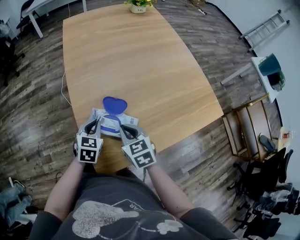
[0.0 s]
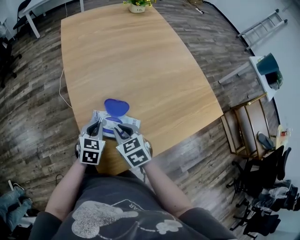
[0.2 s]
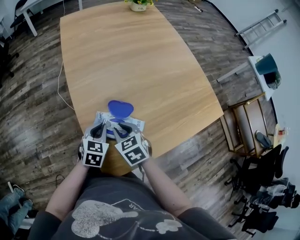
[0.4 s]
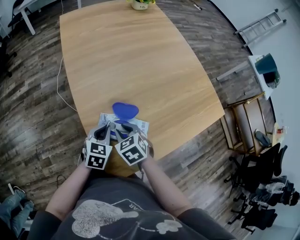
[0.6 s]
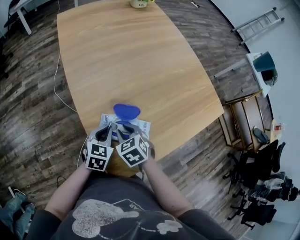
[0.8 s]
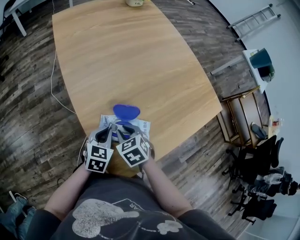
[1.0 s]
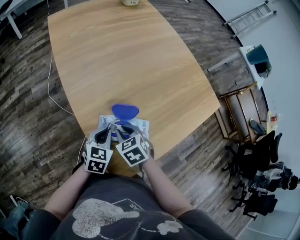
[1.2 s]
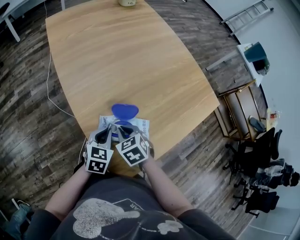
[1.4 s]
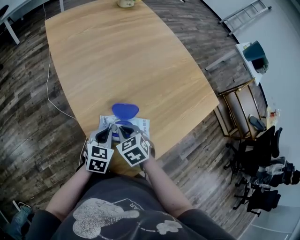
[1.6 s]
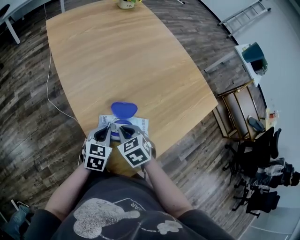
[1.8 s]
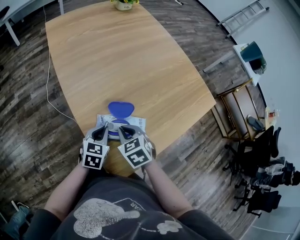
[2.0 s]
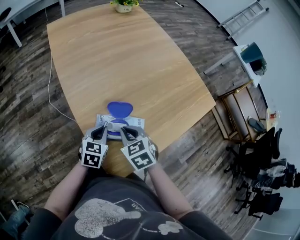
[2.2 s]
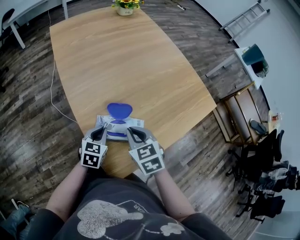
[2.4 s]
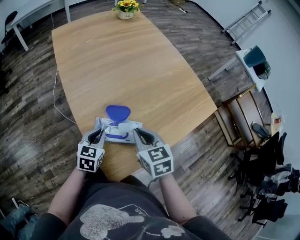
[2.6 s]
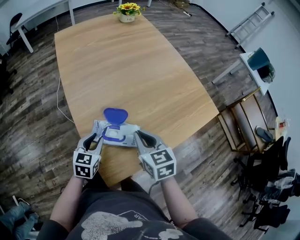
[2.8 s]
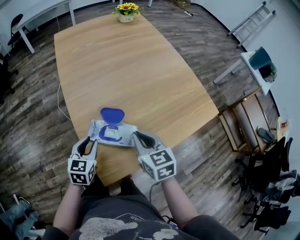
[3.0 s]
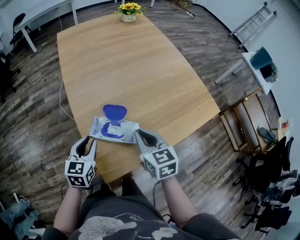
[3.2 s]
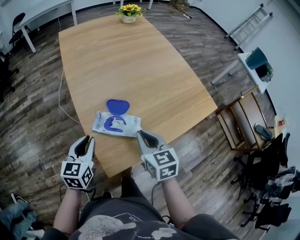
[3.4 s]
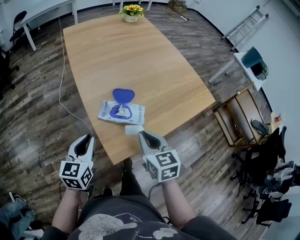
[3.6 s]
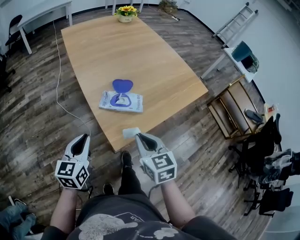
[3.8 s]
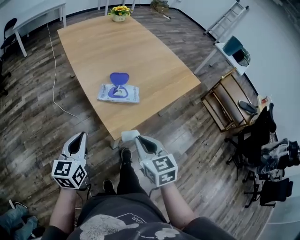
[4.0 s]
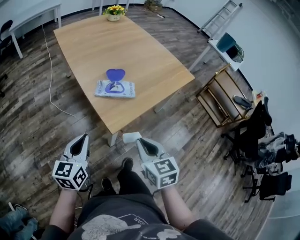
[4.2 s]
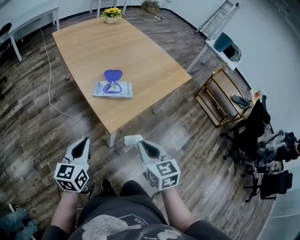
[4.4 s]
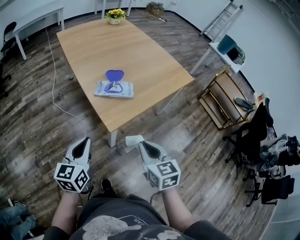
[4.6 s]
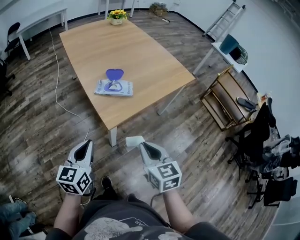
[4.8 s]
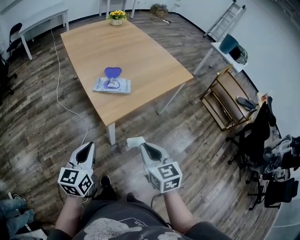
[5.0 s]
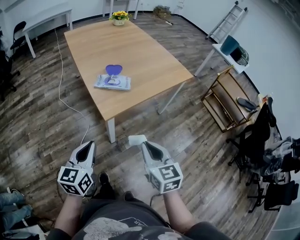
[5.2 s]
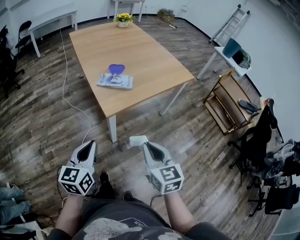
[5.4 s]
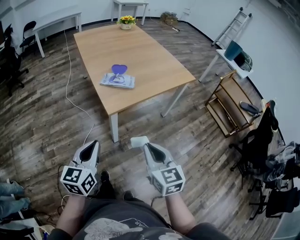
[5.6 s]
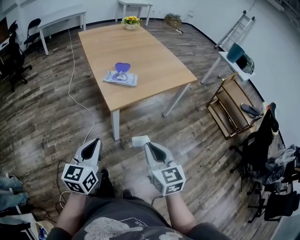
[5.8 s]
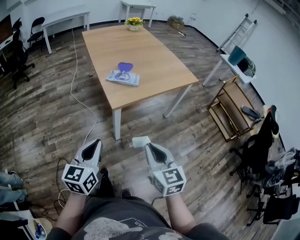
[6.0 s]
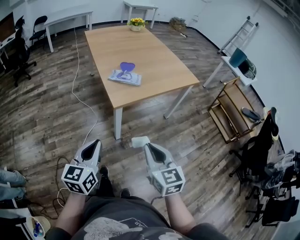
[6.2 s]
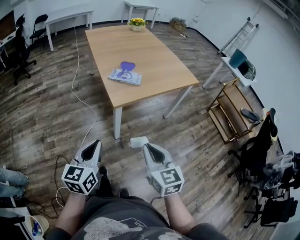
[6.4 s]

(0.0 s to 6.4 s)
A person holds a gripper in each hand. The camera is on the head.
0.0 s - 1.6 s: The right gripper goes some 5 cm to the left, and swivels some 20 degrees.
1.6 s - 3.2 s: The left gripper shifts some 5 cm upward, rotates approximately 20 degrees, and opens its fingers; the right gripper heads upward and to the right, covering about 15 cm, and swivels some 30 degrees.
3.2 s - 4.8 s: The two grippers go roughly 30 cm backward. The left gripper closes up.
4.8 s - 6.4 s: Both grippers move backward, some 15 cm.

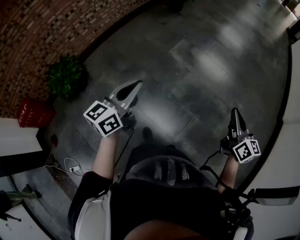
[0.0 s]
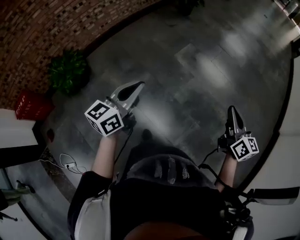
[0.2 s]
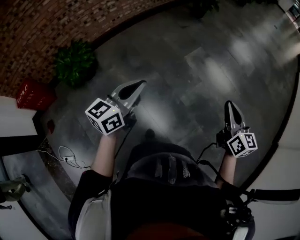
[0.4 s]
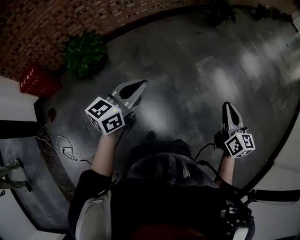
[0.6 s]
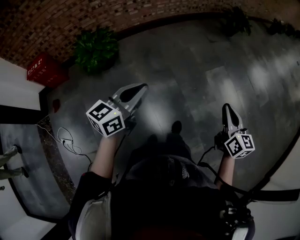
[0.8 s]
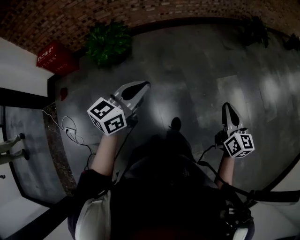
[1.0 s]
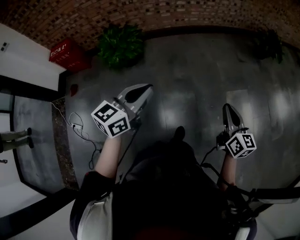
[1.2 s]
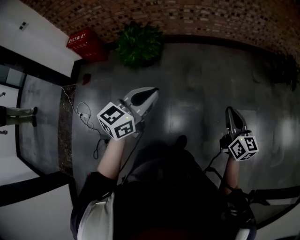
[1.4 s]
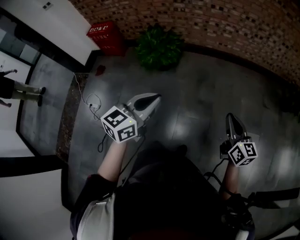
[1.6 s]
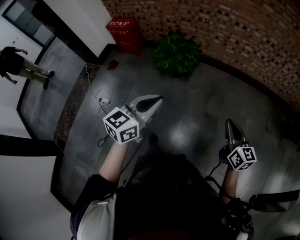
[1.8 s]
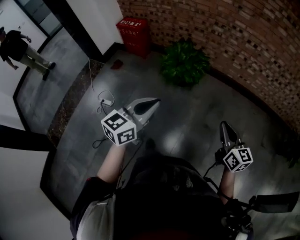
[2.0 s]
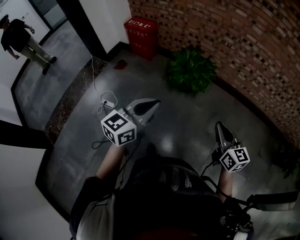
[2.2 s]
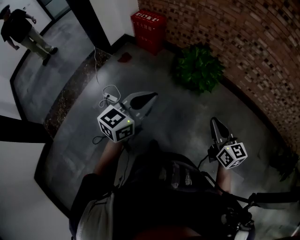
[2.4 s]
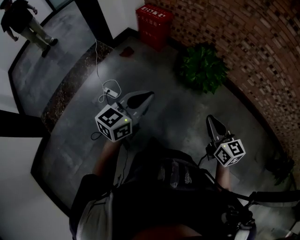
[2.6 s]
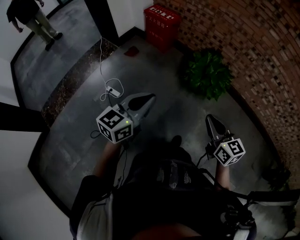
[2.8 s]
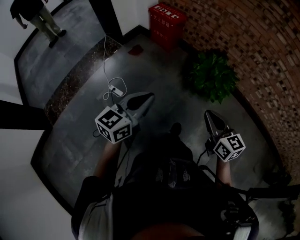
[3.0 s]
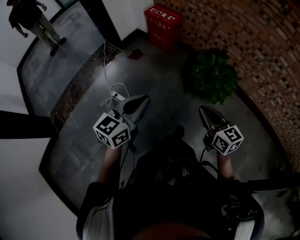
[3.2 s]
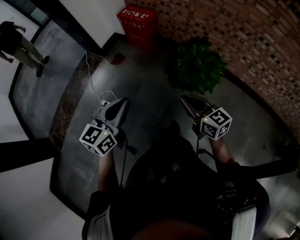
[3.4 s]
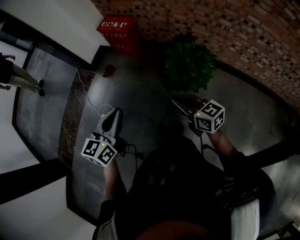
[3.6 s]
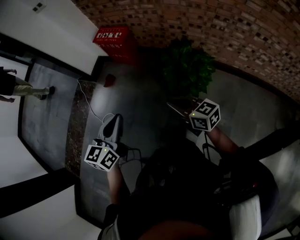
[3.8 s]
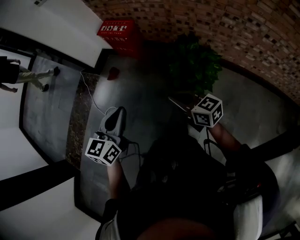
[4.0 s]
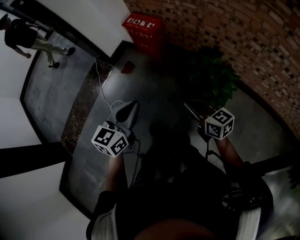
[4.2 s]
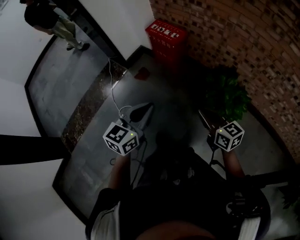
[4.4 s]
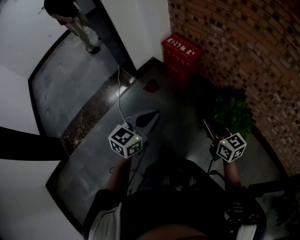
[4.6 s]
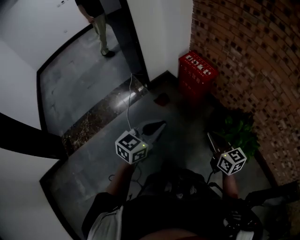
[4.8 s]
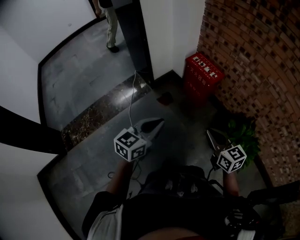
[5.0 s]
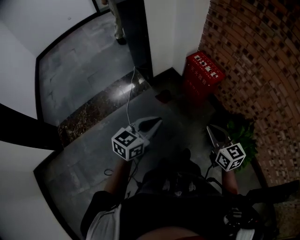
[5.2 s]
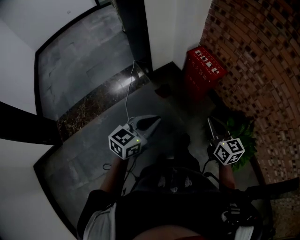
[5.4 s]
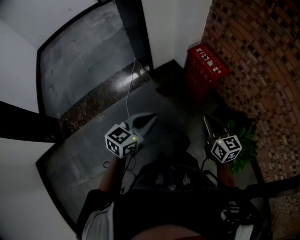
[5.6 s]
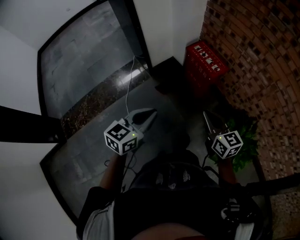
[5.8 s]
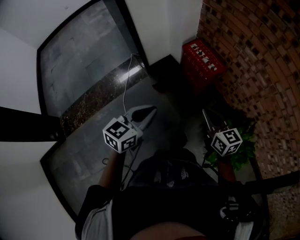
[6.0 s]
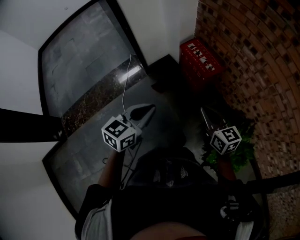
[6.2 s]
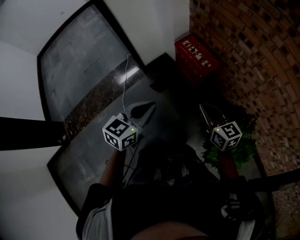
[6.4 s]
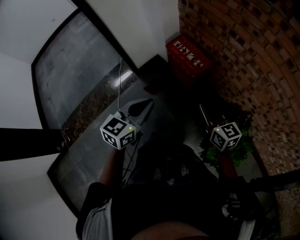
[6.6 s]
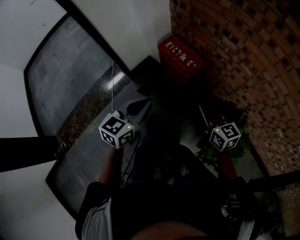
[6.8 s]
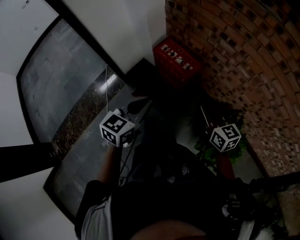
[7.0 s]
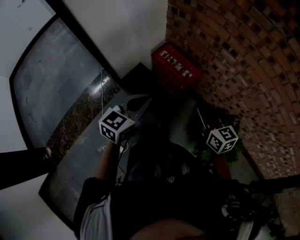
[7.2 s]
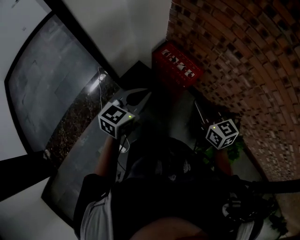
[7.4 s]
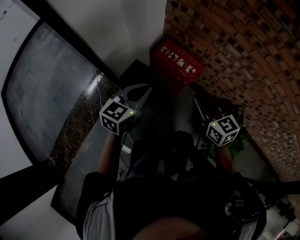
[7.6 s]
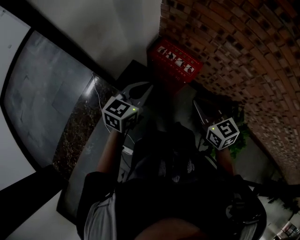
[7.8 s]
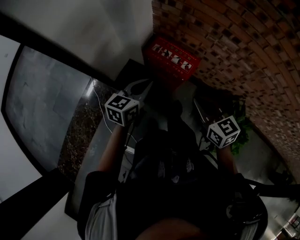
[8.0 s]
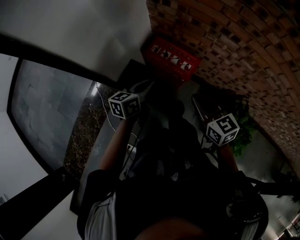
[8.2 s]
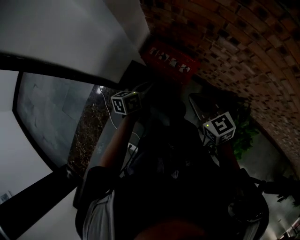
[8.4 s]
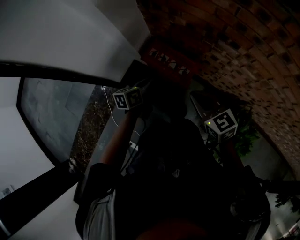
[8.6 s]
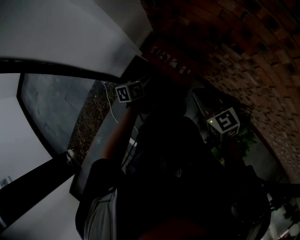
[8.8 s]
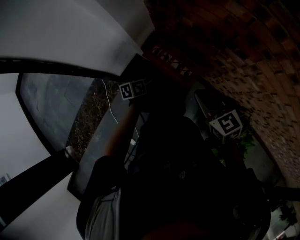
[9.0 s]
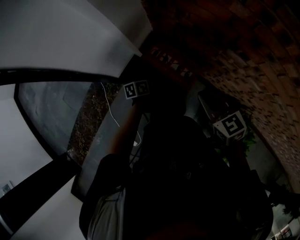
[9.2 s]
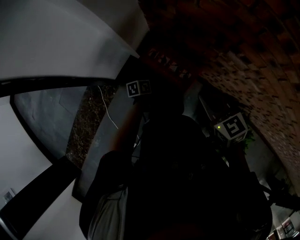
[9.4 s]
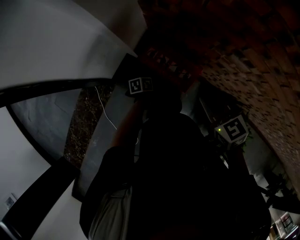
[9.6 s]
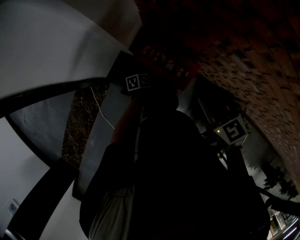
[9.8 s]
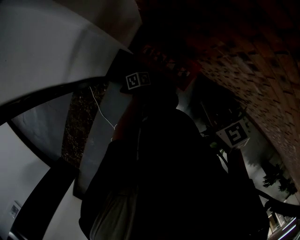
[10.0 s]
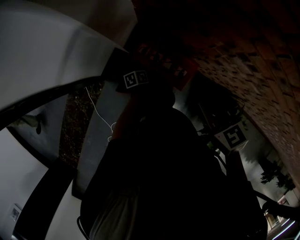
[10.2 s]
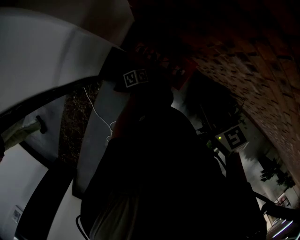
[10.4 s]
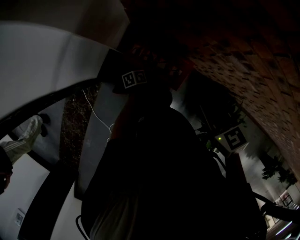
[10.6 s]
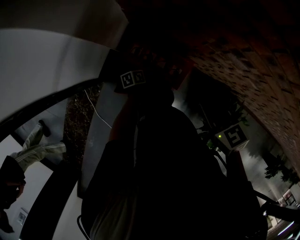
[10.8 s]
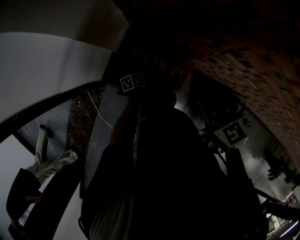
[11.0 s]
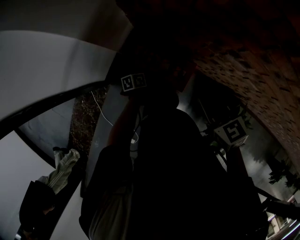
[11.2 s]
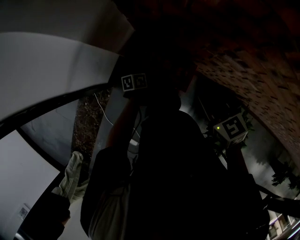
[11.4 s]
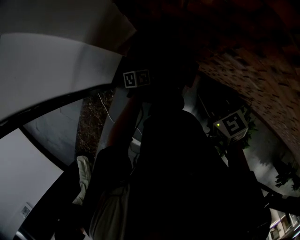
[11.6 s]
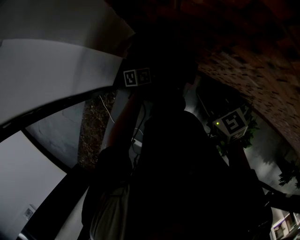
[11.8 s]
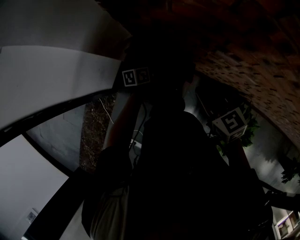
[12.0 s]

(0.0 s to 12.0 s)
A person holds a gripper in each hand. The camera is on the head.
0.0 s - 1.6 s: The left gripper moves approximately 35 cm, and rotates some 50 degrees, while the right gripper ends up roughly 60 cm from where it was, and turns by roughly 60 degrees.
1.6 s - 3.0 s: The pair of grippers is taken some 50 cm. The left gripper turns by some 30 degrees, while the right gripper swivels about 40 degrees.
3.0 s - 4.4 s: Both grippers travel together forward, approximately 25 cm.
4.4 s - 6.0 s: The right gripper moves forward, about 30 cm, while the left gripper heads forward and to the left, covering approximately 30 cm.
6.0 s - 7.6 s: The two grippers go approximately 25 cm forward.
7.6 s - 9.0 s: The right gripper heads forward and to the right, covering some 20 cm, while the left gripper goes roughly 35 cm downward, forward and to the right, rolls counterclockwise, seen from behind, by roughly 50 degrees, and opens its fingers.
9.0 s - 10.4 s: The right gripper travels forward by some 5 cm. Meanwhile the left gripper heads downward, covering some 20 cm, changes its angle by some 20 degrees, and opens up.
10.4 s - 12.0 s: The left gripper travels upward and forward by approximately 15 cm, and changes its angle by some 20 degrees. The right gripper changes place by some 5 cm.

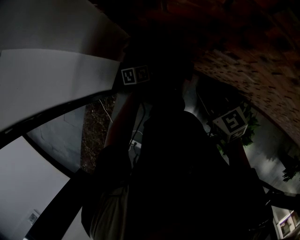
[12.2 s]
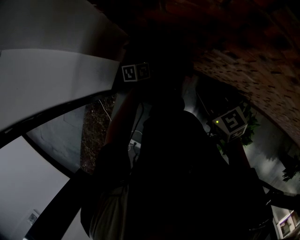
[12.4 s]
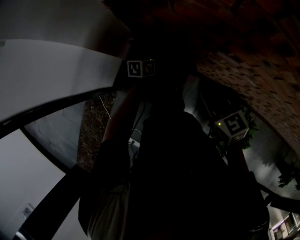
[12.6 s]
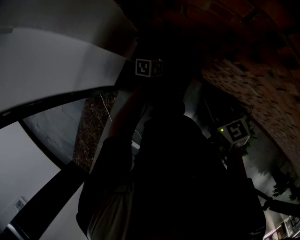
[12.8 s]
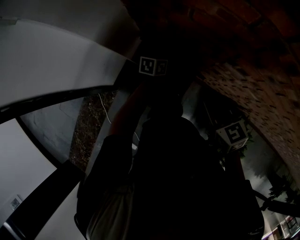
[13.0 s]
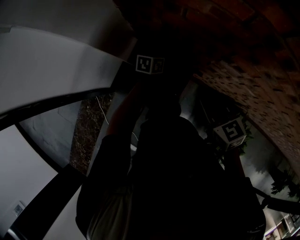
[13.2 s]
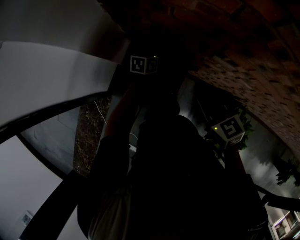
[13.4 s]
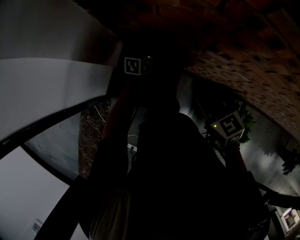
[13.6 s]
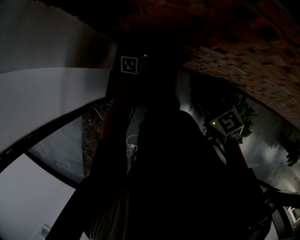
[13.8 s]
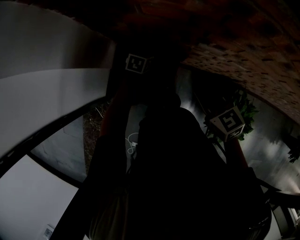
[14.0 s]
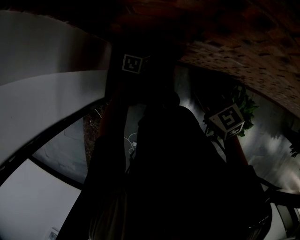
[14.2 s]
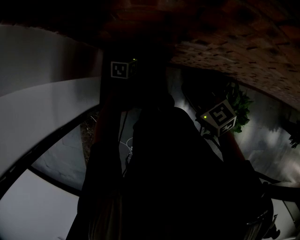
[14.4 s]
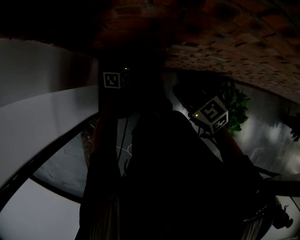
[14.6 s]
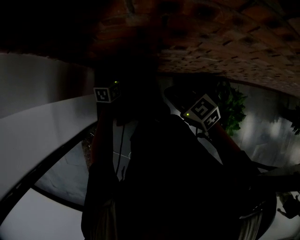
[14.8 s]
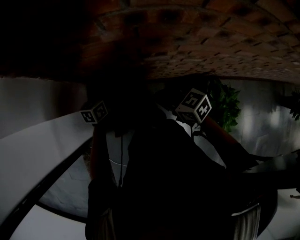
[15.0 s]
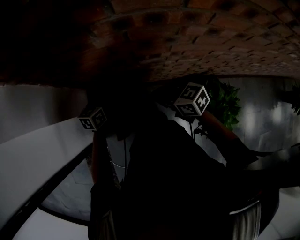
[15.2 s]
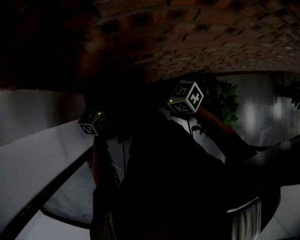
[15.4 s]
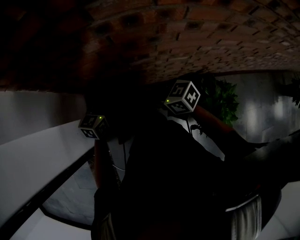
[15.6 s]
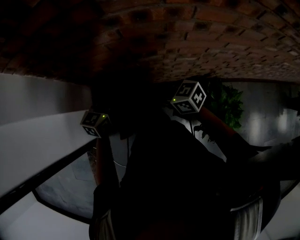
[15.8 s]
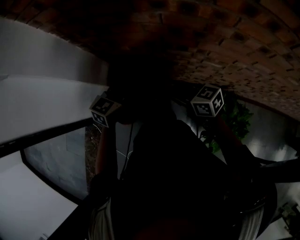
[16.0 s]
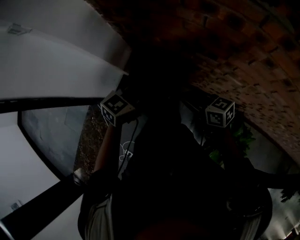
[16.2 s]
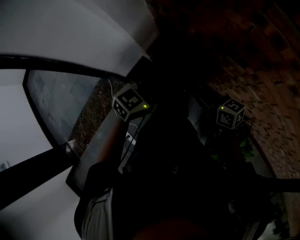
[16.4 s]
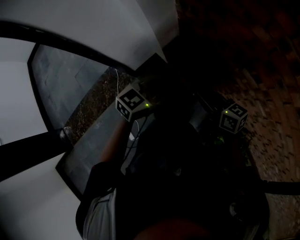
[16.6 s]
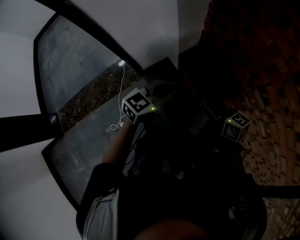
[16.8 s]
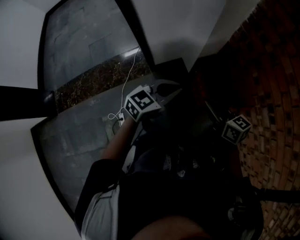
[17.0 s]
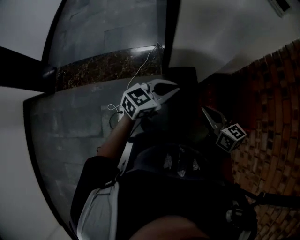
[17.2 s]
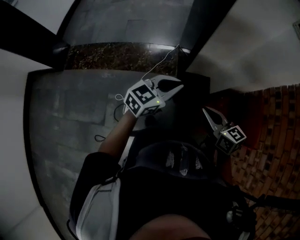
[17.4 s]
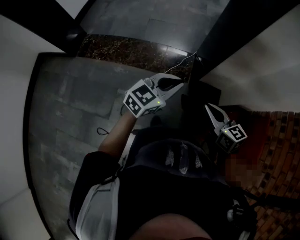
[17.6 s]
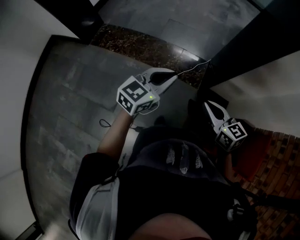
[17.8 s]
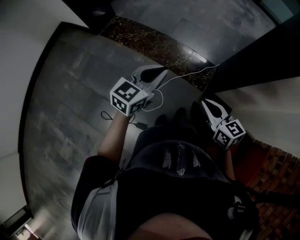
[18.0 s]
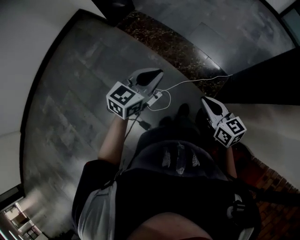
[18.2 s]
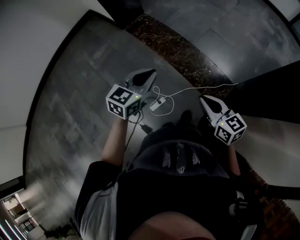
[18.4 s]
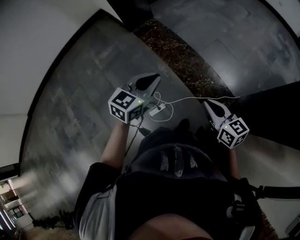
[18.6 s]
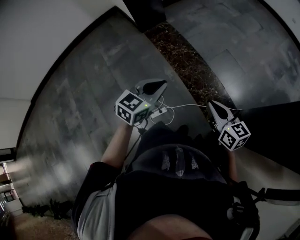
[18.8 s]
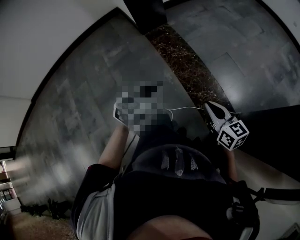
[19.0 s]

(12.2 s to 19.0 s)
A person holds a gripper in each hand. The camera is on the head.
12.2 s - 13.6 s: The left gripper goes roughly 5 cm forward, and swivels approximately 20 degrees.
13.6 s - 15.0 s: The left gripper moves upward, some 5 cm, and closes.
15.0 s - 16.2 s: The right gripper heads backward, covering some 5 cm, and turns by about 20 degrees. Meanwhile the left gripper goes approximately 20 cm upward and backward, and turns by approximately 20 degrees.
16.2 s - 17.6 s: The pair of grippers is taken roughly 50 cm. The left gripper swivels some 70 degrees. Meanwhile the right gripper swivels some 60 degrees.
17.6 s - 19.0 s: The left gripper moves some 25 cm, and changes its angle by roughly 60 degrees. The right gripper changes place by about 35 cm, and changes its angle by about 50 degrees.
